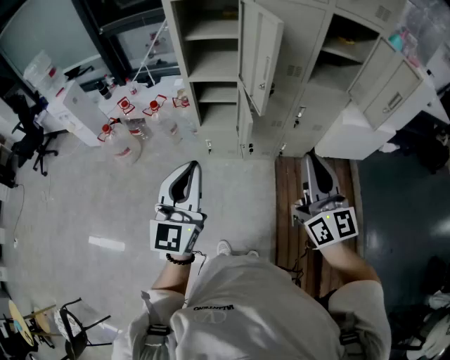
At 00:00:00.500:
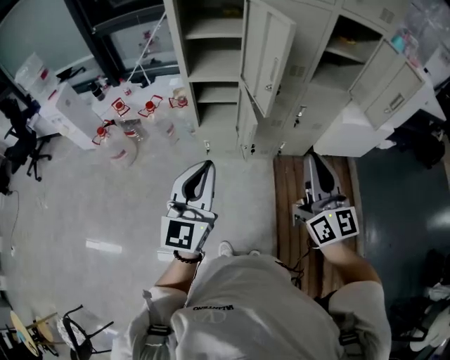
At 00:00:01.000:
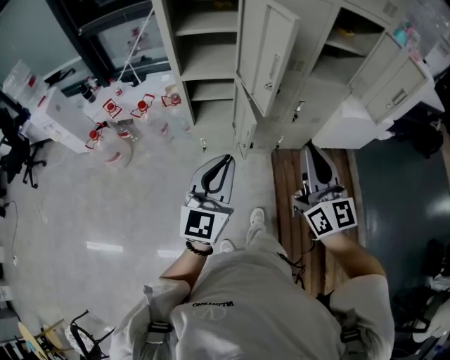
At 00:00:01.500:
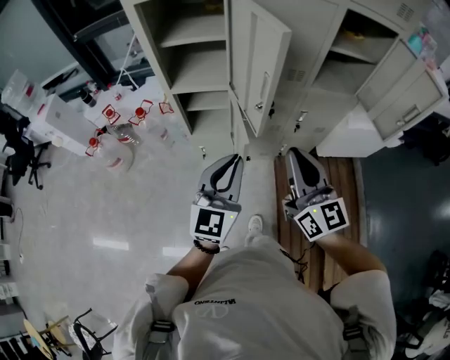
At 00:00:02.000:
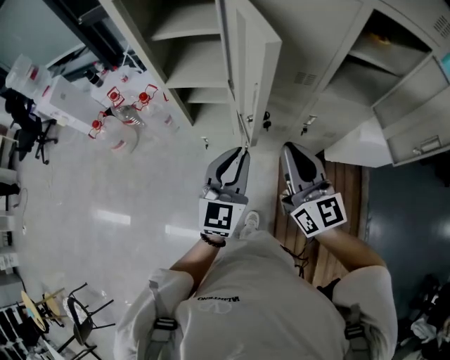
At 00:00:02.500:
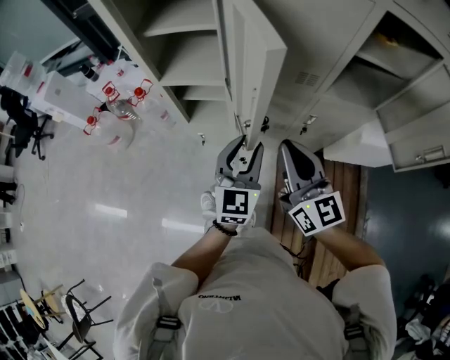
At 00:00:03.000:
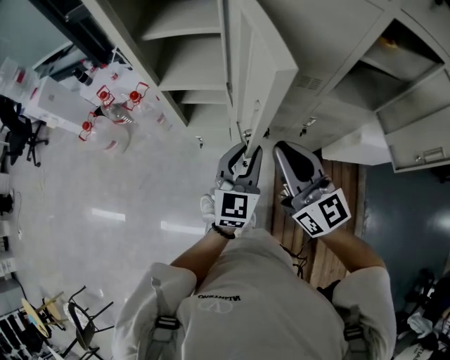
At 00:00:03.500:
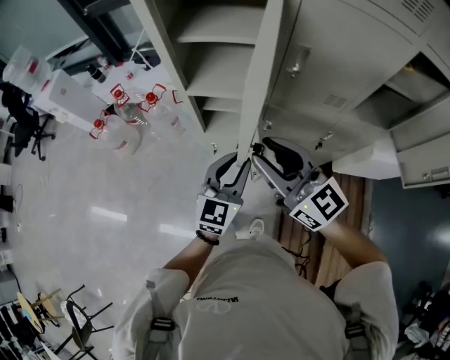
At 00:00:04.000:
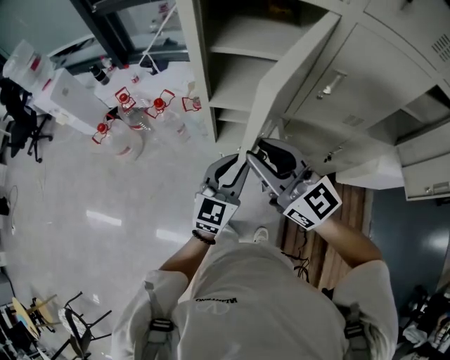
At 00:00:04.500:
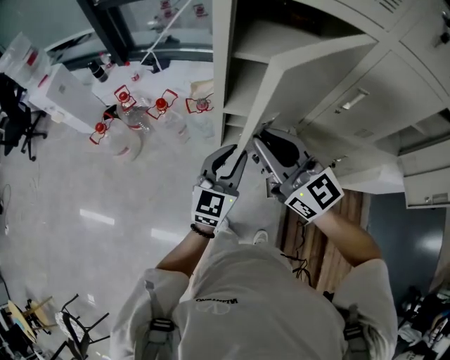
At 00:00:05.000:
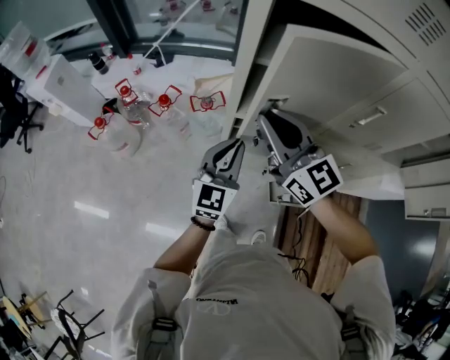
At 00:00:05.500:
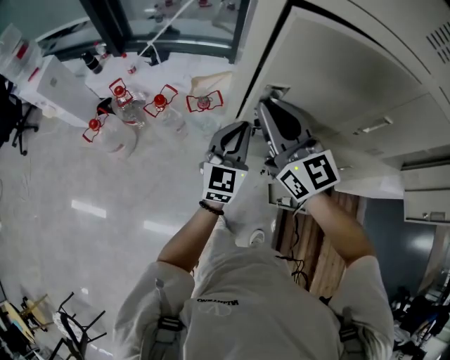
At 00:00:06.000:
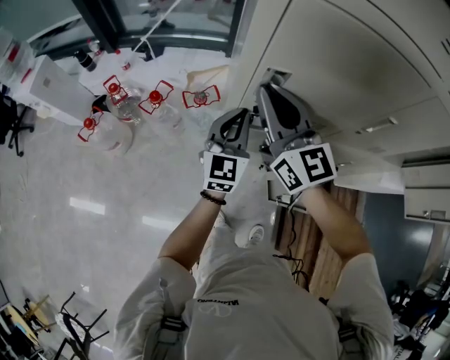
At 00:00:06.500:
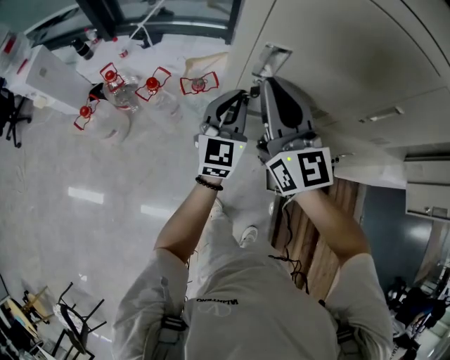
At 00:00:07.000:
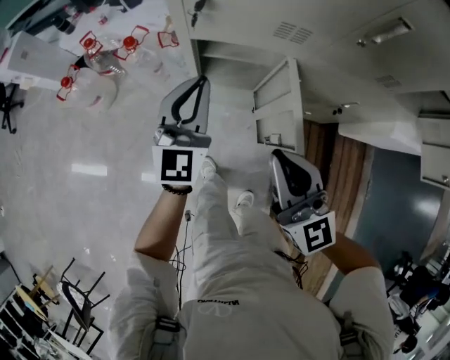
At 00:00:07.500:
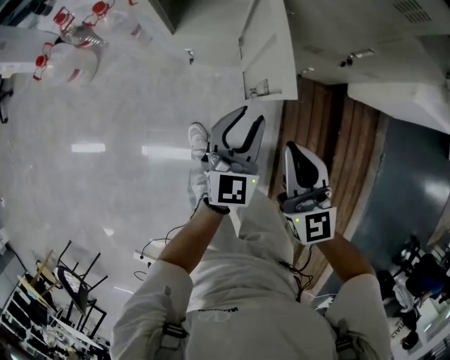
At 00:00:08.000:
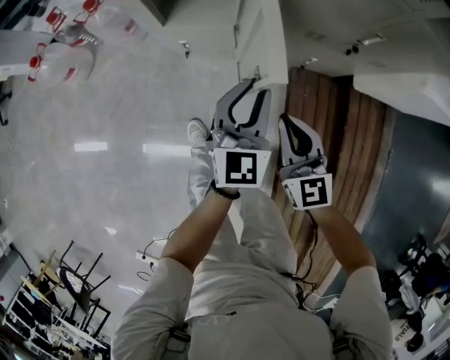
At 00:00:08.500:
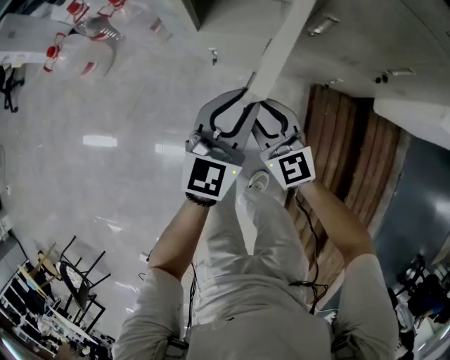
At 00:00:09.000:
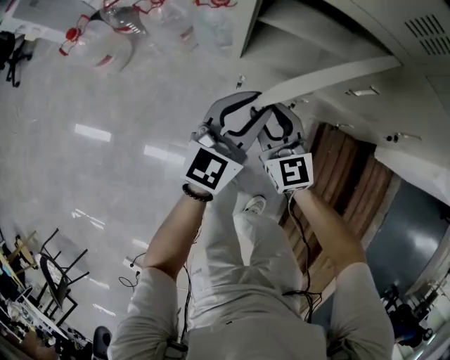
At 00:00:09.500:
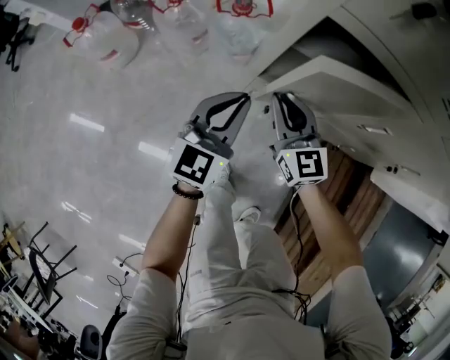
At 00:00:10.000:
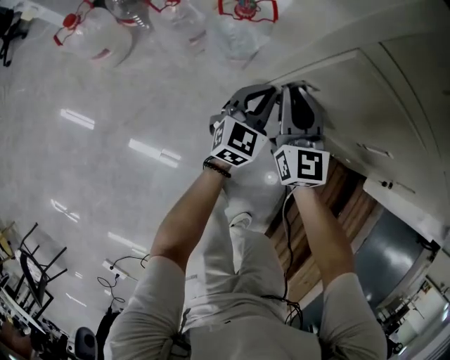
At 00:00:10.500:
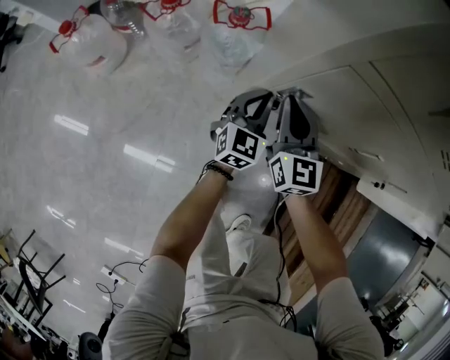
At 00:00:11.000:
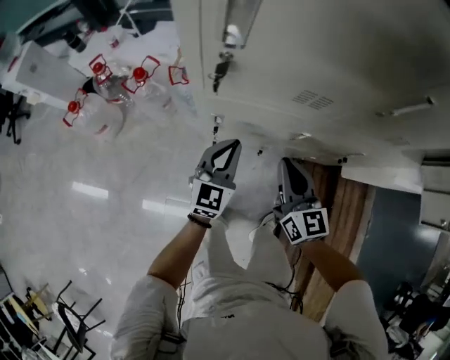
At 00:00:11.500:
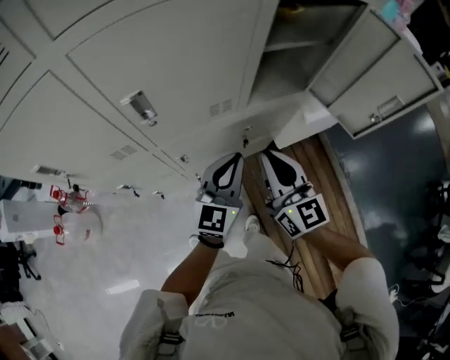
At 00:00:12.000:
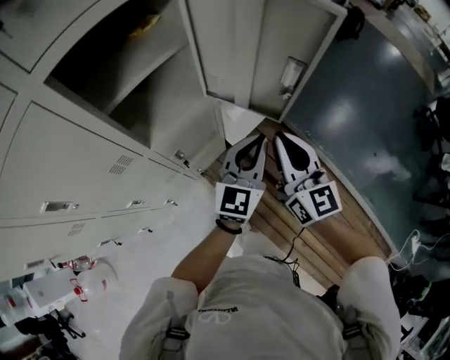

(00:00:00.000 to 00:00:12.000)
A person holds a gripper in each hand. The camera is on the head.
00:00:00.000 - 00:00:02.000: The left gripper goes some 35 cm forward, to the right and downward. The right gripper goes approximately 25 cm forward.
00:00:02.000 - 00:00:04.000: Both grippers move to the left and forward, some 25 cm. The right gripper turns by roughly 30 degrees, and opens its fingers.
00:00:04.000 - 00:00:06.000: Both grippers move forward, approximately 20 cm. The right gripper closes its fingers.
00:00:06.000 - 00:00:08.000: The left gripper shifts some 40 cm backward, downward and to the right. Meanwhile the right gripper travels downward, backward and to the right by approximately 60 cm, and turns by approximately 20 degrees.
00:00:08.000 - 00:00:10.000: The right gripper travels forward and to the left by roughly 40 cm, and opens, then closes once more, while the left gripper shifts roughly 40 cm forward, to the left and downward.
00:00:10.000 - 00:00:12.000: Both grippers are carried about 90 cm. The right gripper swivels approximately 60 degrees. The left gripper changes its angle by roughly 60 degrees.

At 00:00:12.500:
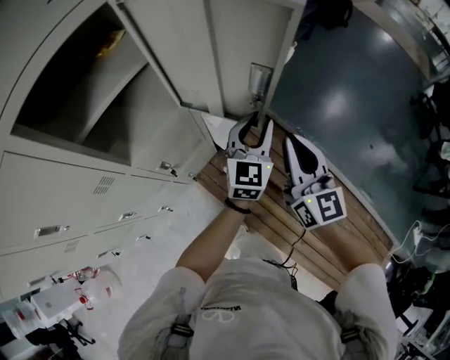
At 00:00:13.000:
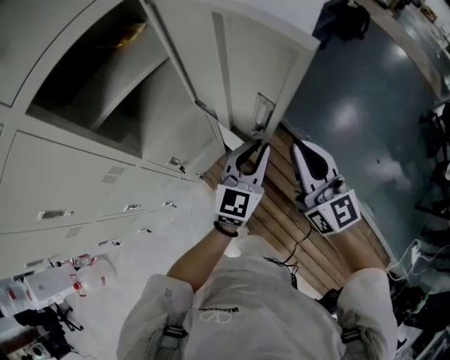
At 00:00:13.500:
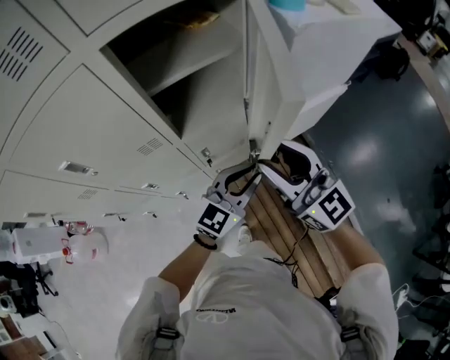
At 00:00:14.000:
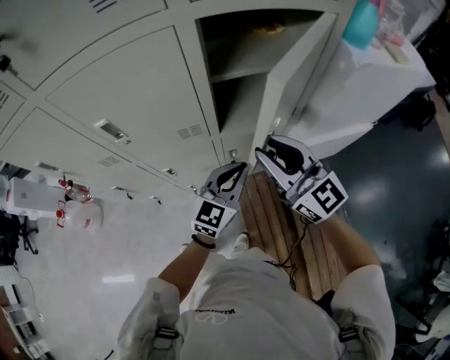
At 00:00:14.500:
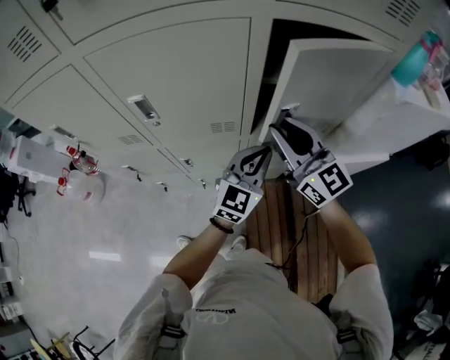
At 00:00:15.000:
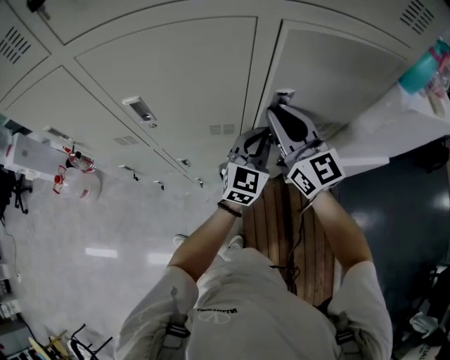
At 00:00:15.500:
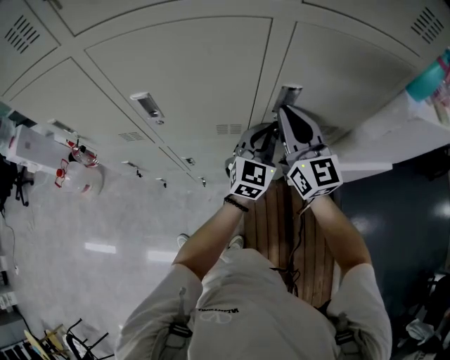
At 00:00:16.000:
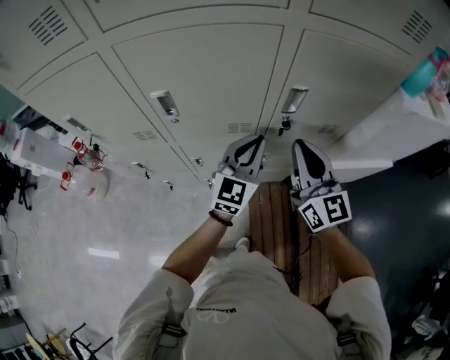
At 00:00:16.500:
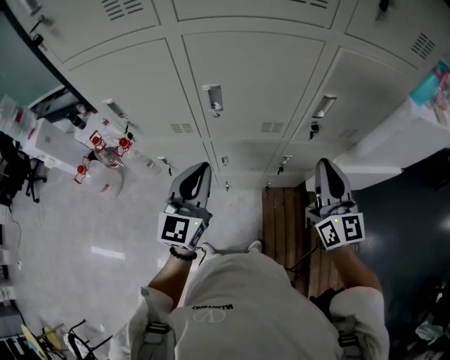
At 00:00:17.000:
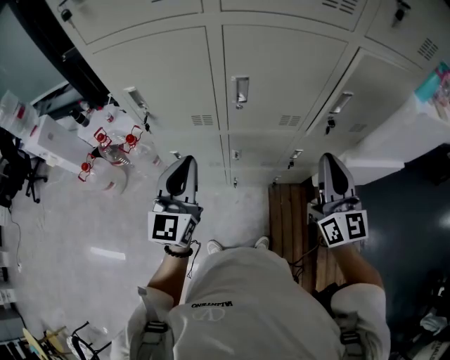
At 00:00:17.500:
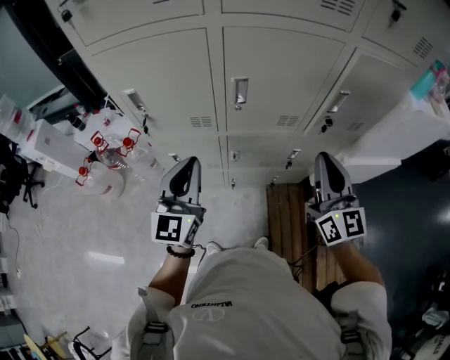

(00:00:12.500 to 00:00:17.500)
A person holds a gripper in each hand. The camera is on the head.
00:00:12.500 - 00:00:15.000: The right gripper moves approximately 40 cm, swivels approximately 60 degrees, and opens and closes again. Meanwhile the left gripper changes place by about 40 cm, swivels roughly 40 degrees, and closes its fingers.
00:00:15.000 - 00:00:17.500: The right gripper is displaced backward and to the left by about 20 cm; the left gripper is displaced to the left and backward by some 40 cm, and turns by some 20 degrees.

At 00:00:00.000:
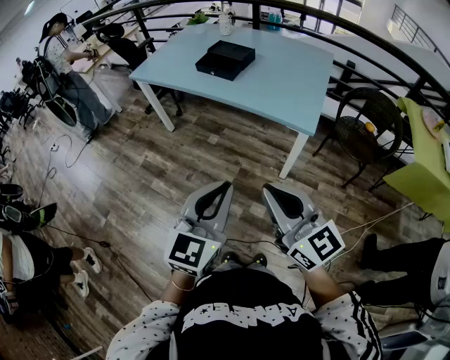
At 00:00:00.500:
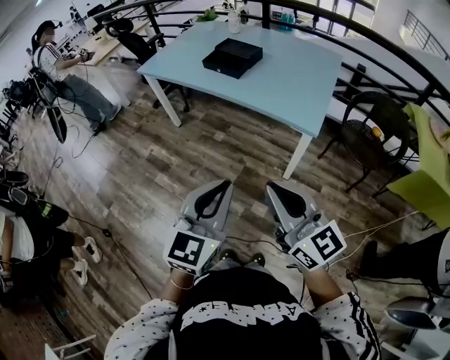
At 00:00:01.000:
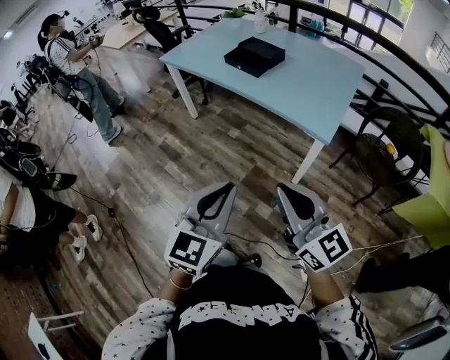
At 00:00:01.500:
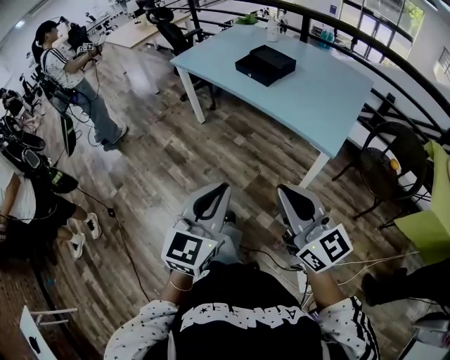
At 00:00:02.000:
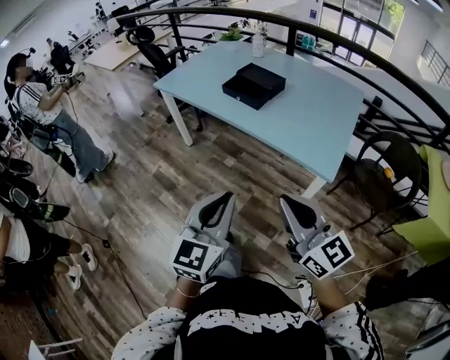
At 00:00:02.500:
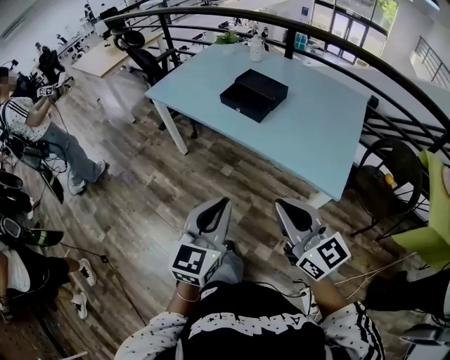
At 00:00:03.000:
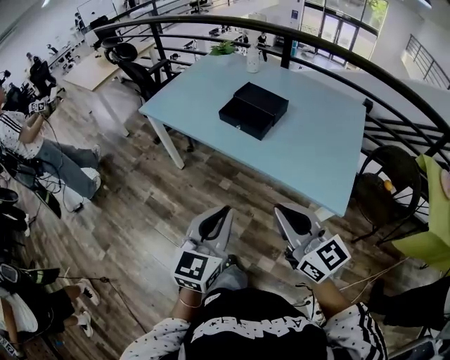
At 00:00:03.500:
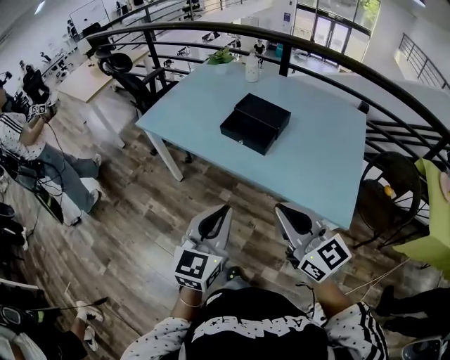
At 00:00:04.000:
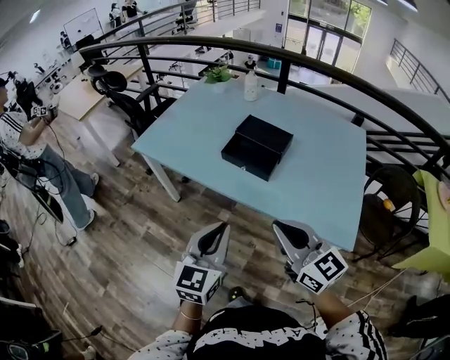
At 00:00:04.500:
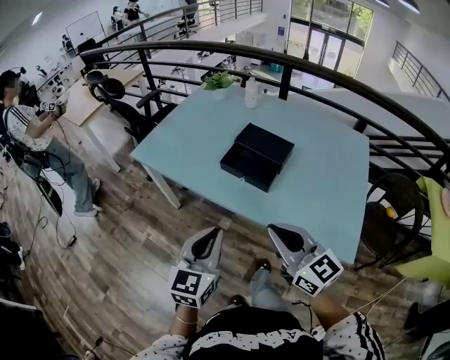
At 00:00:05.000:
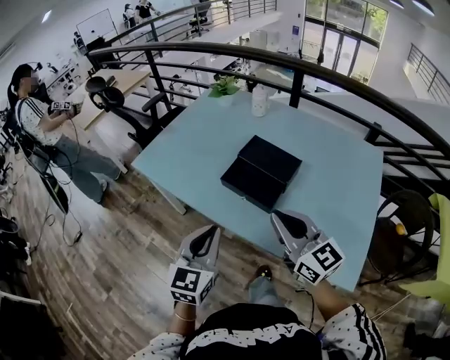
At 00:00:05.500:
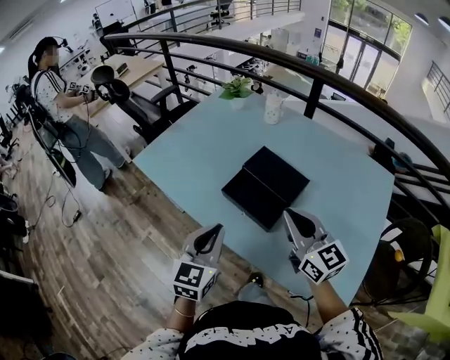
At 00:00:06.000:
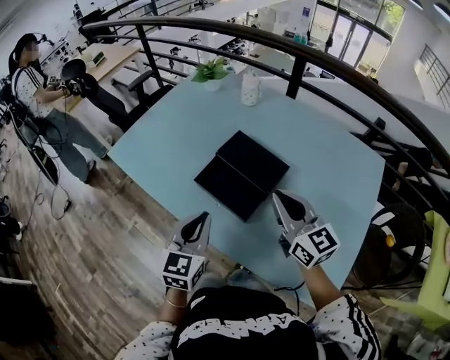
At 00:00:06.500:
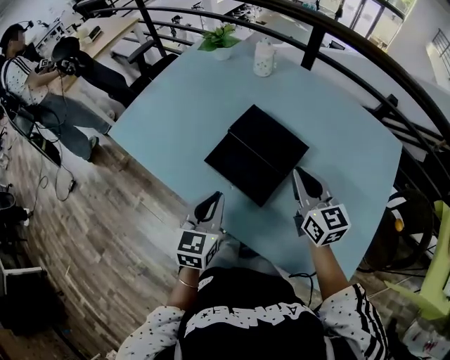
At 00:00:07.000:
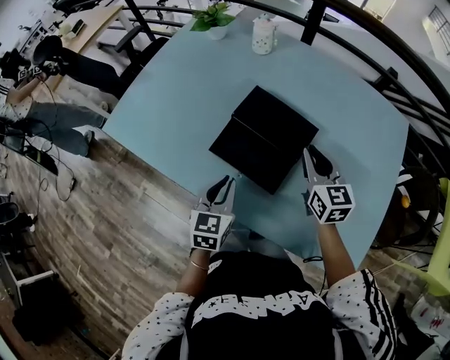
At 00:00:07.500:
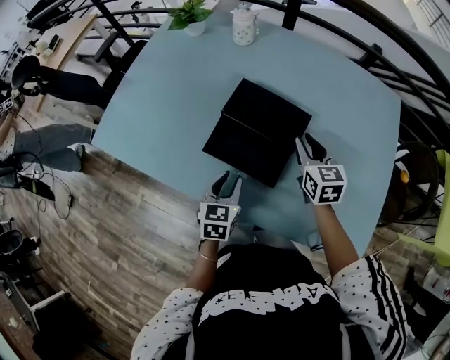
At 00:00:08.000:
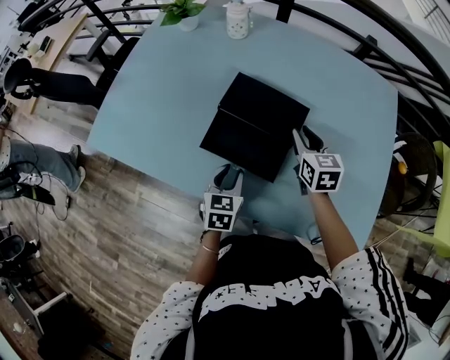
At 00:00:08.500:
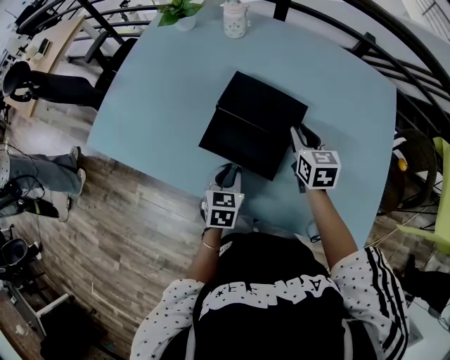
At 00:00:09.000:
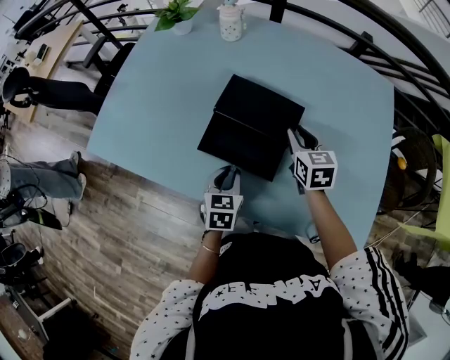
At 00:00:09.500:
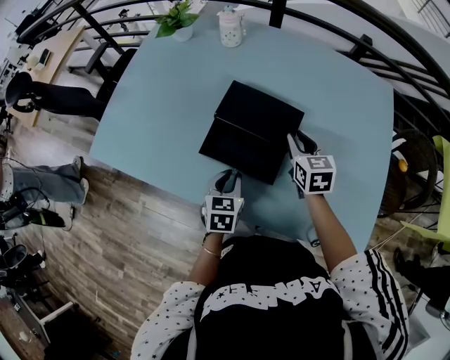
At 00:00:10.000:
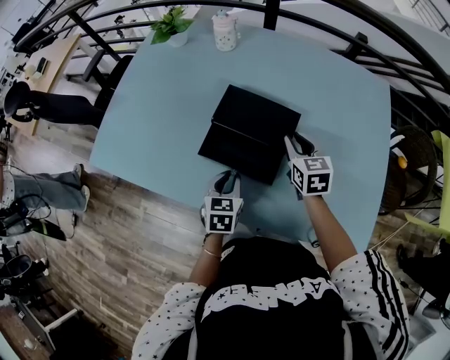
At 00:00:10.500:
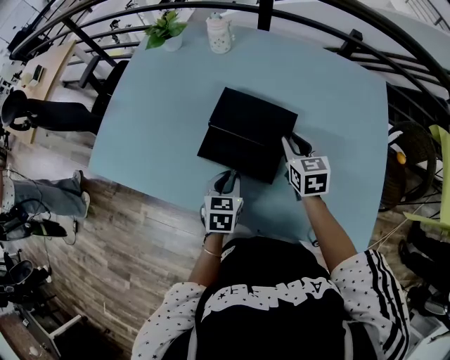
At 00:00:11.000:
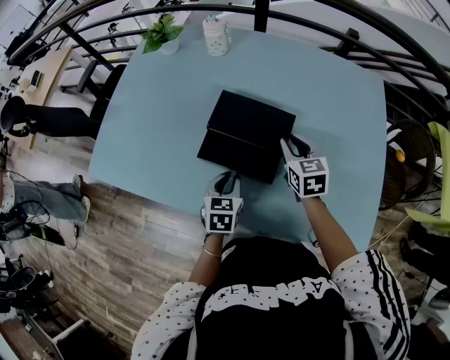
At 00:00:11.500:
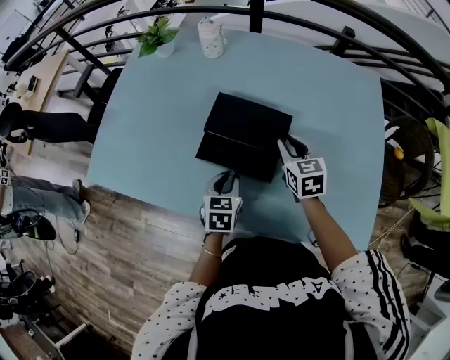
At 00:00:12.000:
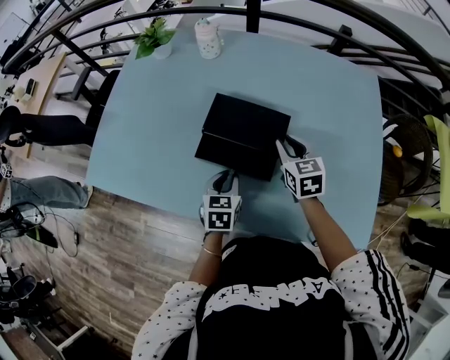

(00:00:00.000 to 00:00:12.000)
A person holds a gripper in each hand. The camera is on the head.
00:00:00.000 - 00:00:02.000: The grippers both shift forward by approximately 10 cm.
00:00:02.000 - 00:00:04.000: Both grippers move forward, approximately 35 cm.
00:00:04.000 - 00:00:06.000: The grippers both shift forward and to the right by approximately 30 cm.
00:00:06.000 - 00:00:08.000: Both grippers move downward and forward, approximately 20 cm. The right gripper turns by about 40 degrees, and opens up. The left gripper rotates approximately 20 degrees.
00:00:08.000 - 00:00:12.000: There are only small adjustments of the grippers.
